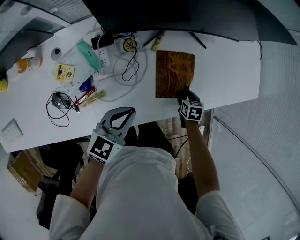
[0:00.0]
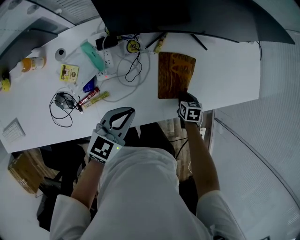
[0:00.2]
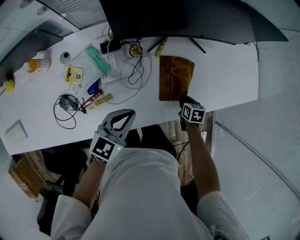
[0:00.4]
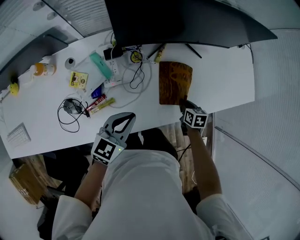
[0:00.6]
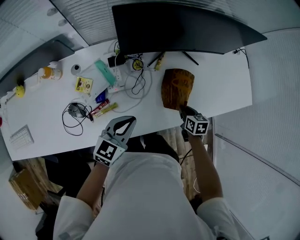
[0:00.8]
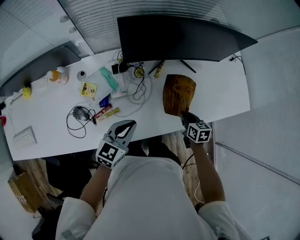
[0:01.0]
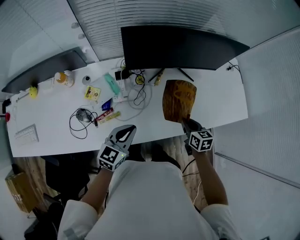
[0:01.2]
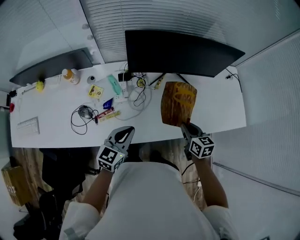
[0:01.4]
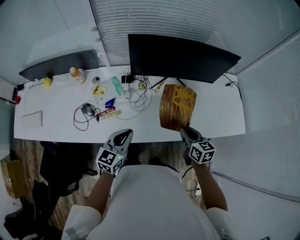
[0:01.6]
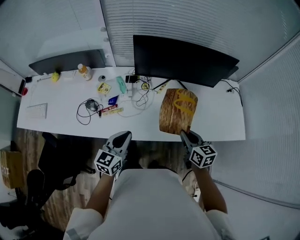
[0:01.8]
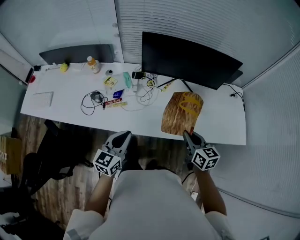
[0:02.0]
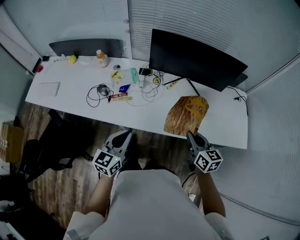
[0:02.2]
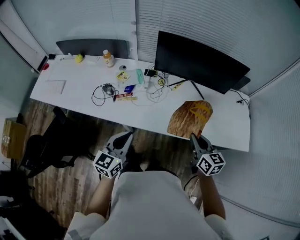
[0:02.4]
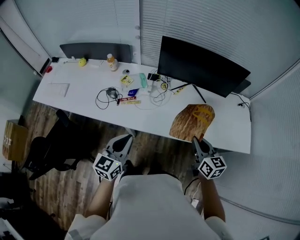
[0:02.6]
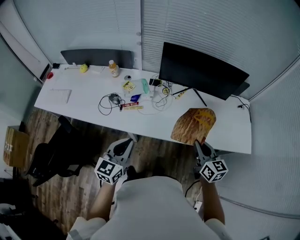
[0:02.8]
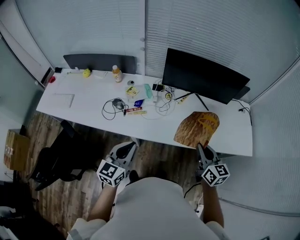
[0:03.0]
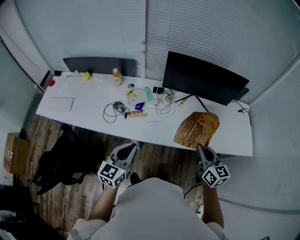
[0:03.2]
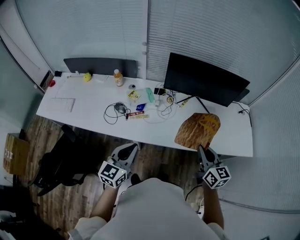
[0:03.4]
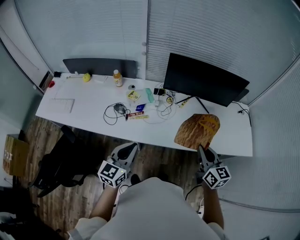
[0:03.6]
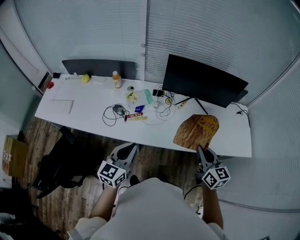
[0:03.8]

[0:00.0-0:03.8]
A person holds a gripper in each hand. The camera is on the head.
0:00.0 to 0:01.2: The left gripper goes some 10 cm upward and backward, while the right gripper is displaced upward by about 20 cm, swivels some 30 degrees, and closes up.
0:01.2 to 0:02.6: The right gripper heads upward and backward, covering roughly 25 cm, and swivels about 30 degrees, while the left gripper is displaced backward and upward by roughly 25 cm, and swivels about 30 degrees.
0:02.6 to 0:03.8: The left gripper heads to the left, covering some 5 cm. The right gripper shifts roughly 10 cm to the left and upward.

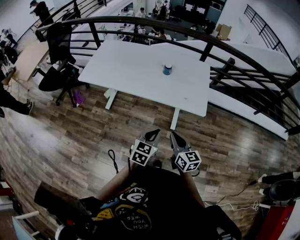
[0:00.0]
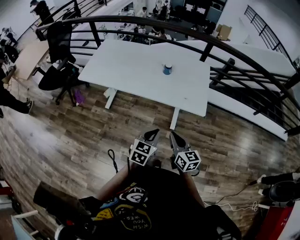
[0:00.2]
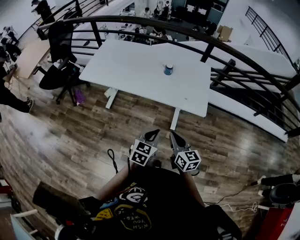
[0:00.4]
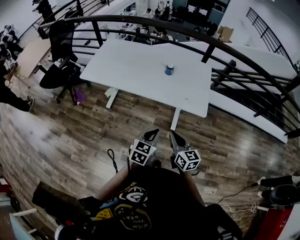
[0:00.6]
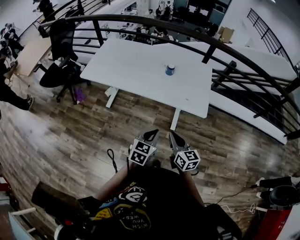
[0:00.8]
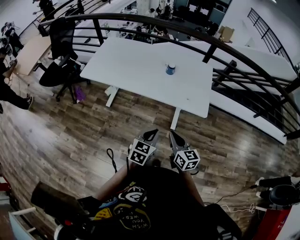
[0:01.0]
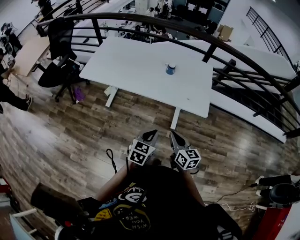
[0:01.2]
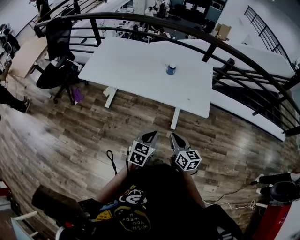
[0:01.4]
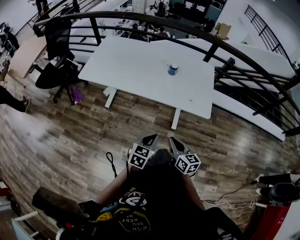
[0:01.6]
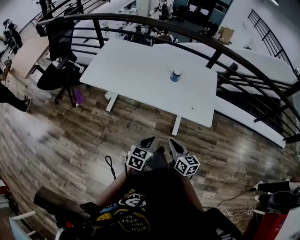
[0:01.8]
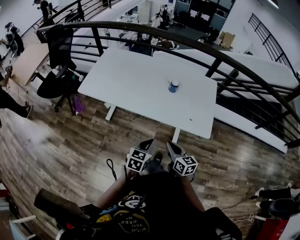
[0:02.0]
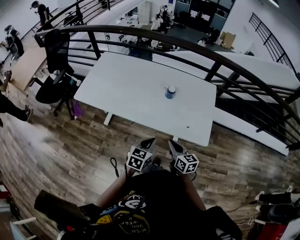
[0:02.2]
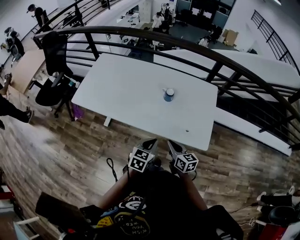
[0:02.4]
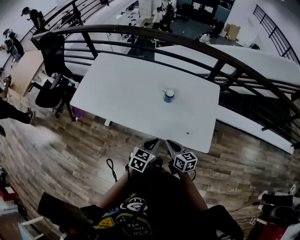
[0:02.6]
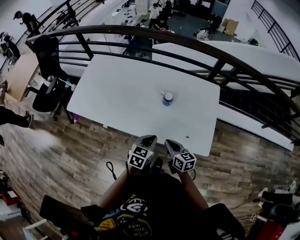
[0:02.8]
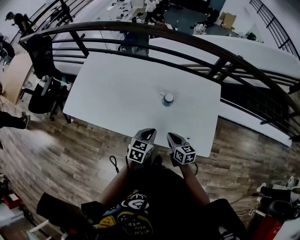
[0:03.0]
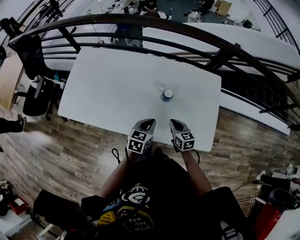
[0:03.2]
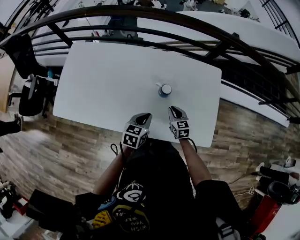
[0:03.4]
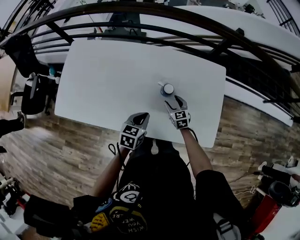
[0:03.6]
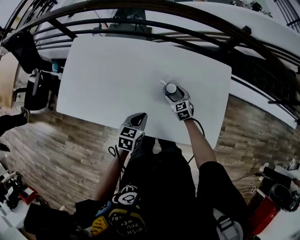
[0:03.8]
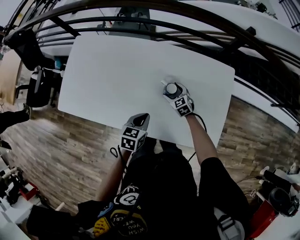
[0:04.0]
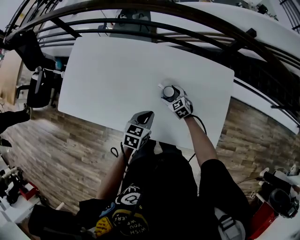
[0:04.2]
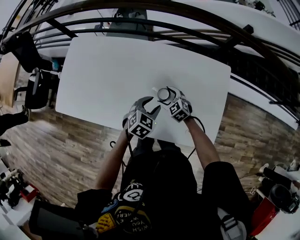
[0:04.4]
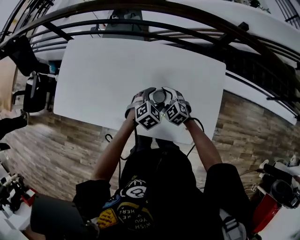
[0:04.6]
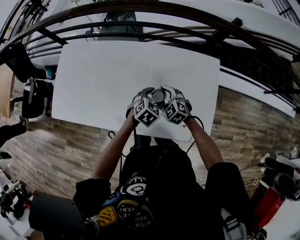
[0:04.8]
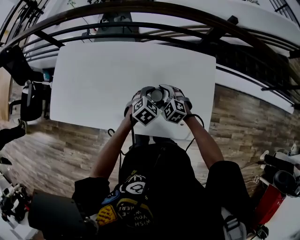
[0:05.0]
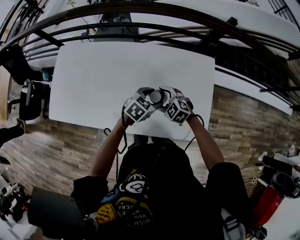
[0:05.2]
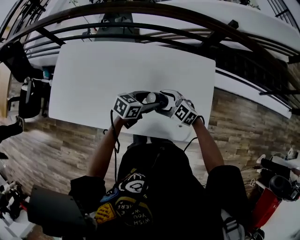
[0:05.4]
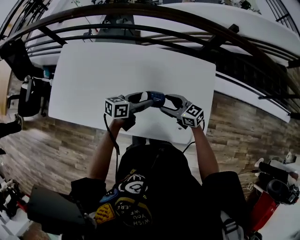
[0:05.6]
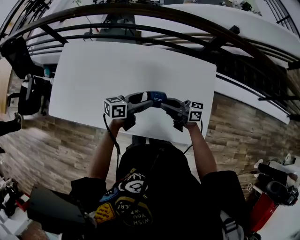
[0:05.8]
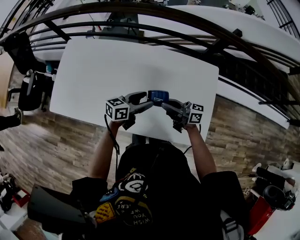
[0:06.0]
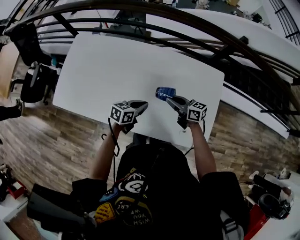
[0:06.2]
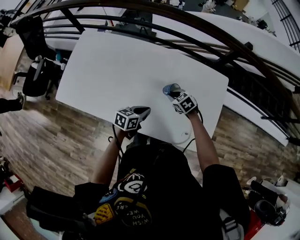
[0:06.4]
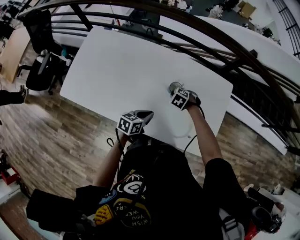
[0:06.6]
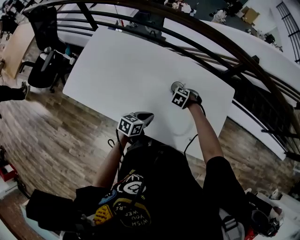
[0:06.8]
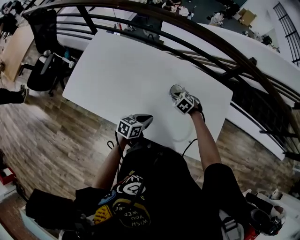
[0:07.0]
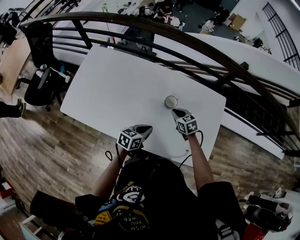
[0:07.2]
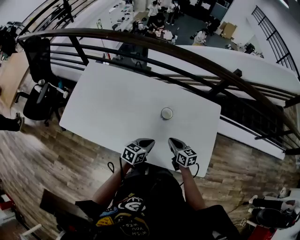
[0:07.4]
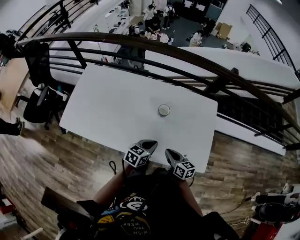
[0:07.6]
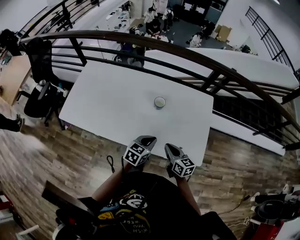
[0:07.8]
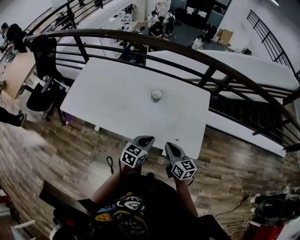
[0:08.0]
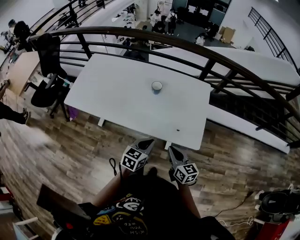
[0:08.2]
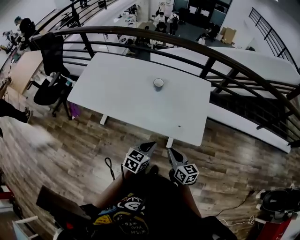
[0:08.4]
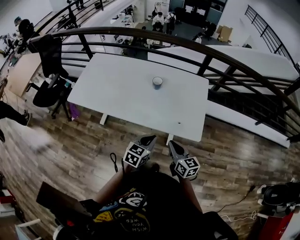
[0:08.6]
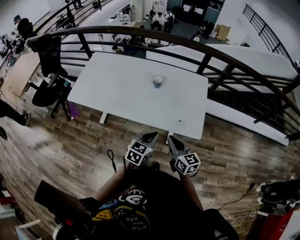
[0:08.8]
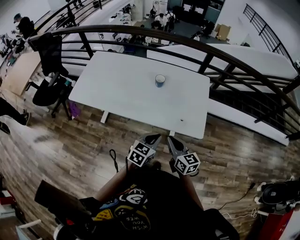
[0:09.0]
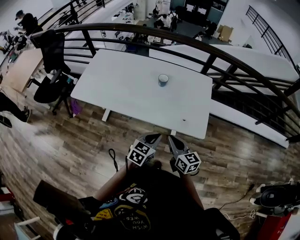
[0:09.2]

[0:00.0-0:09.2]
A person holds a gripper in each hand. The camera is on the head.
0:00.0 to 0:01.6: The grippers both shift to the left by about 5 cm.
0:01.6 to 0:03.0: Both grippers move forward, some 35 cm.
0:03.0 to 0:04.6: Both grippers move forward, roughly 20 cm. The left gripper turns by about 40 degrees, and opens. Meanwhile the right gripper rotates around the line of its fingers by about 50 degrees, counterclockwise from behind, and opens up.
0:04.6 to 0:06.2: The right gripper goes about 5 cm upward, rotates around the line of its fingers by approximately 50 degrees, clockwise from behind, and closes up. The left gripper reaches some 10 cm upward, then returns, twists some 40 degrees counterclockwise, seen from behind, and closes up.
0:06.2 to 0:07.6: The right gripper moves roughly 10 cm downward and comes back, and turns by some 30 degrees. Meanwhile the left gripper changes place by some 10 cm.
0:07.6 to 0:09.2: The left gripper goes about 25 cm backward. The right gripper heads backward and upward, covering about 25 cm.

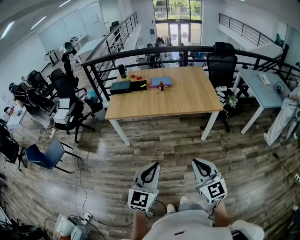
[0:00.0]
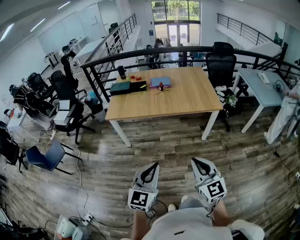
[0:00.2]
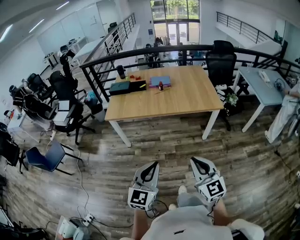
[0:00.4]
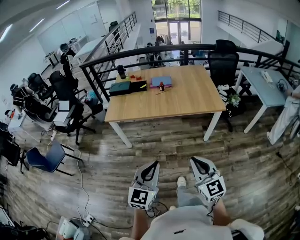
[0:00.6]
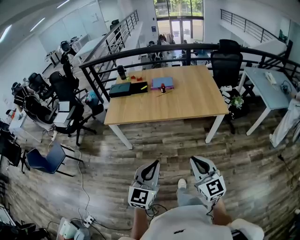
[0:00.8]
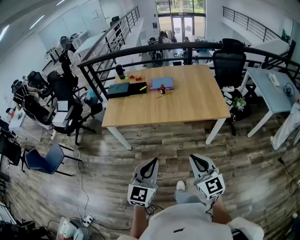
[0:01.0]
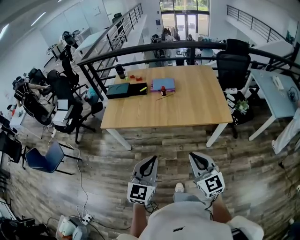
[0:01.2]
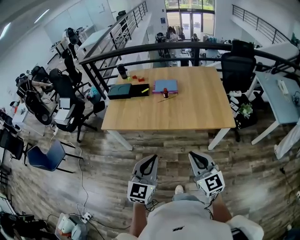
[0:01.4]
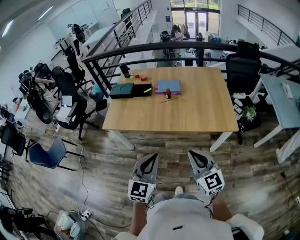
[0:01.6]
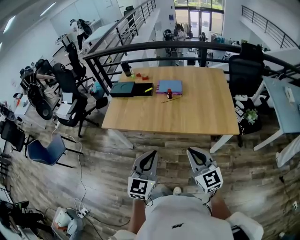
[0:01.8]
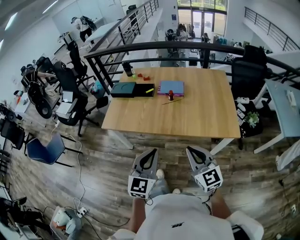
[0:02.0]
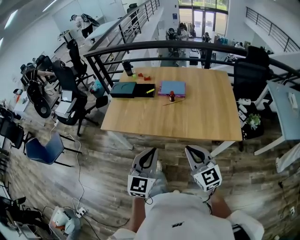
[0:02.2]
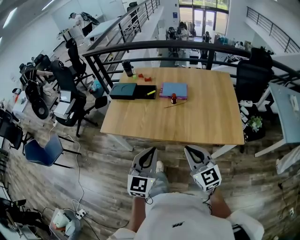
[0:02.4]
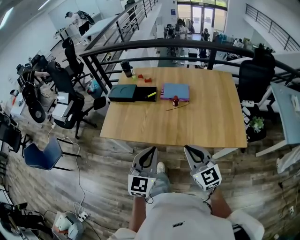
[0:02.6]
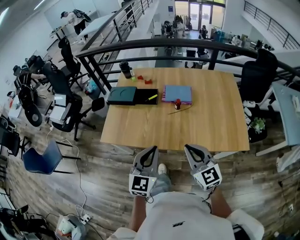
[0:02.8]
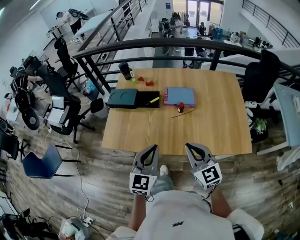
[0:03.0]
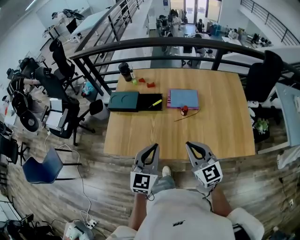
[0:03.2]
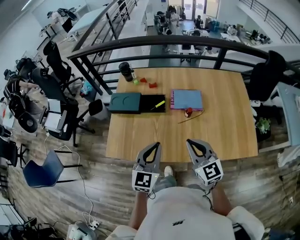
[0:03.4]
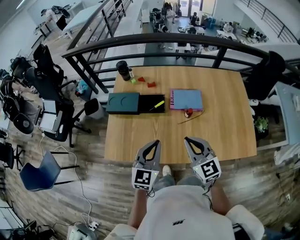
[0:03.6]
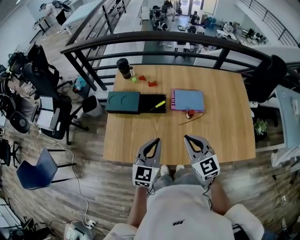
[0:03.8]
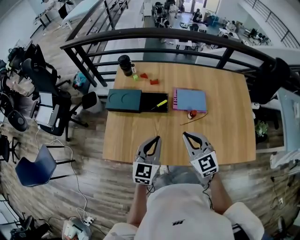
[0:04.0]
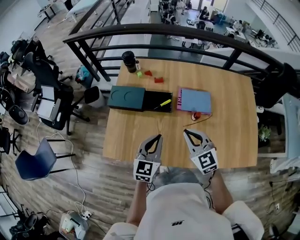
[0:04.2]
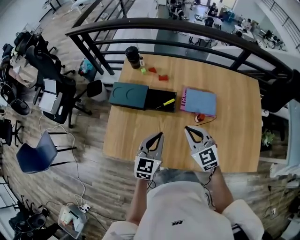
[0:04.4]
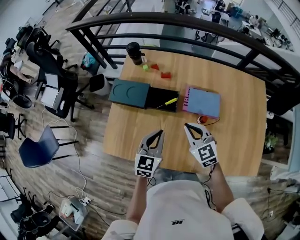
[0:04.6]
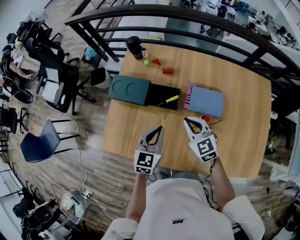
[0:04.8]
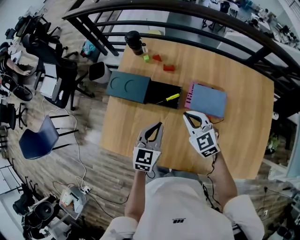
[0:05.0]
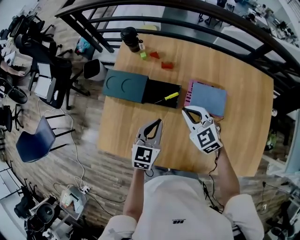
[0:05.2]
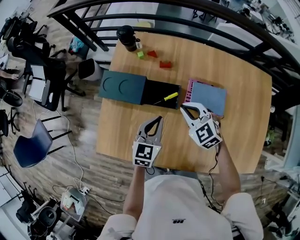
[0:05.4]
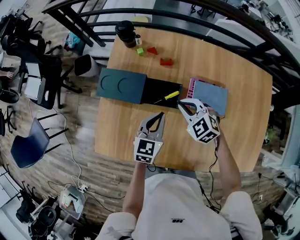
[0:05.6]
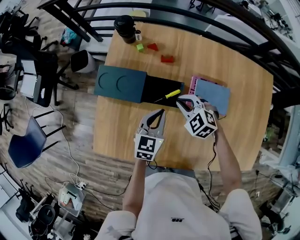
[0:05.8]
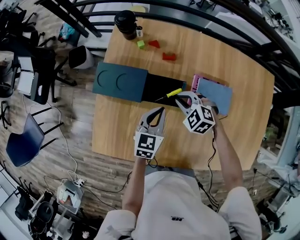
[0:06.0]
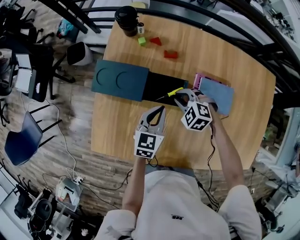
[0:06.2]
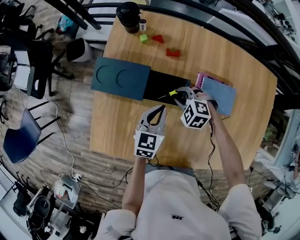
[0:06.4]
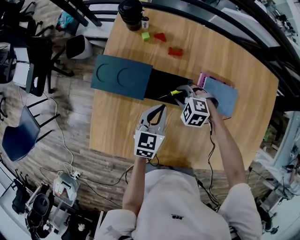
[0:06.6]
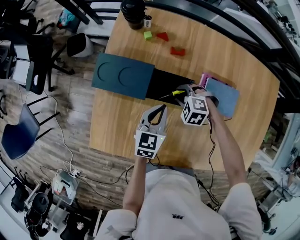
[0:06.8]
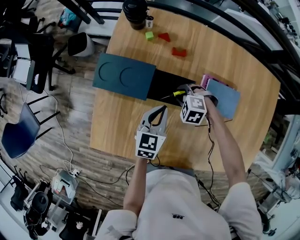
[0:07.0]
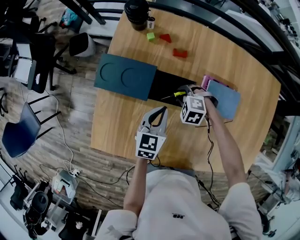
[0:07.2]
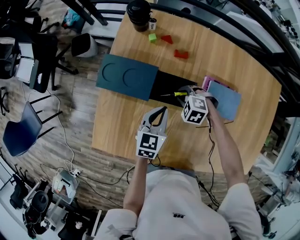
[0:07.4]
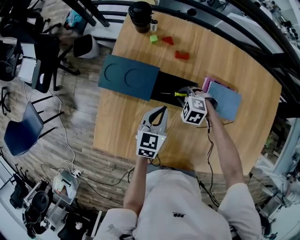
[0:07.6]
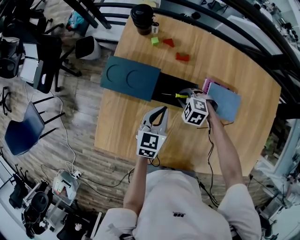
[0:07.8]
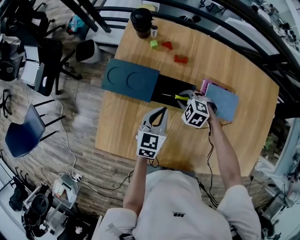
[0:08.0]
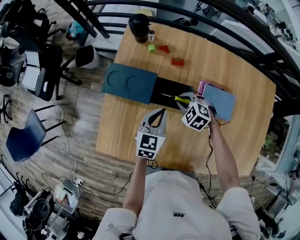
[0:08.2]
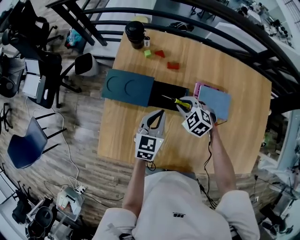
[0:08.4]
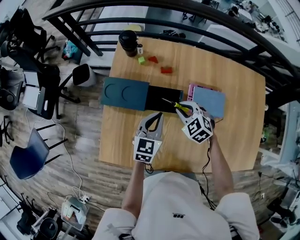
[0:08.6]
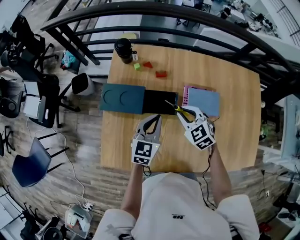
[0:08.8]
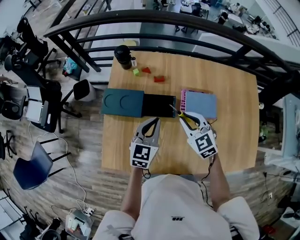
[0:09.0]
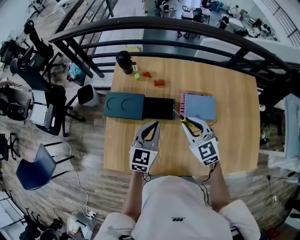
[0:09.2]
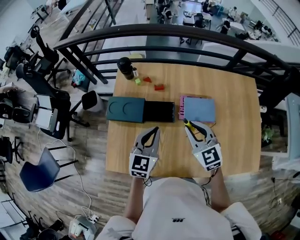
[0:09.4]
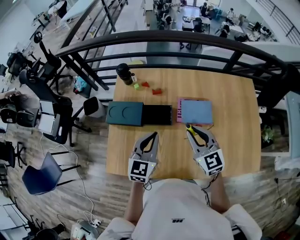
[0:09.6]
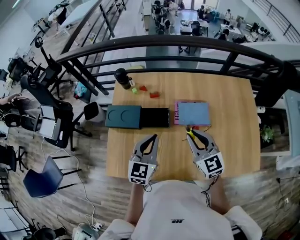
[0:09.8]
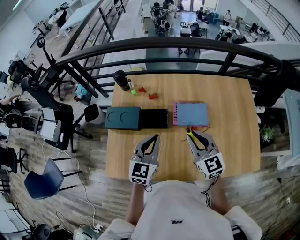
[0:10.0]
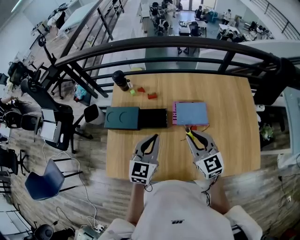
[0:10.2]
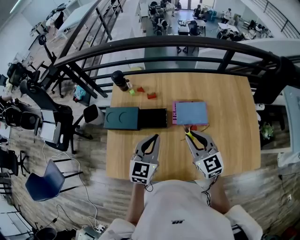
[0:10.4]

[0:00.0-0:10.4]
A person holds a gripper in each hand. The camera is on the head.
0:00.0 to 0:01.4: The two grippers go approximately 30 cm forward.
0:01.4 to 0:03.0: Both grippers move forward, roughly 35 cm.
0:03.0 to 0:04.4: The right gripper is displaced forward by roughly 25 cm, while the left gripper shifts some 25 cm forward and downward.
0:04.4 to 0:06.0: The left gripper goes approximately 20 cm forward and downward; the right gripper heads downward and forward, covering about 25 cm, and tips its fingers downward by roughly 30 degrees.
0:06.0 to 0:07.4: The right gripper travels downward by roughly 10 cm, and rotates roughly 20 degrees.
0:07.4 to 0:09.0: The right gripper goes approximately 25 cm upward, and tilts its fingers roughly 40 degrees upward, while the left gripper goes some 15 cm upward.
0:09.0 to 0:10.4: The left gripper heads upward, backward and to the right, covering some 10 cm. Meanwhile the right gripper shifts some 15 cm upward, to the right and backward, and turns by about 20 degrees.
